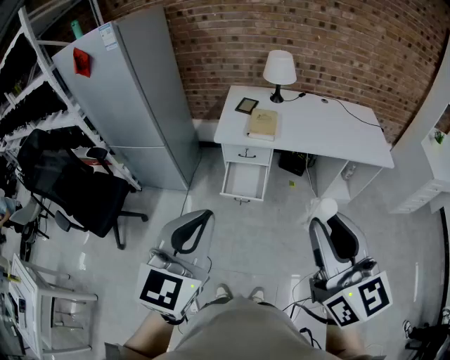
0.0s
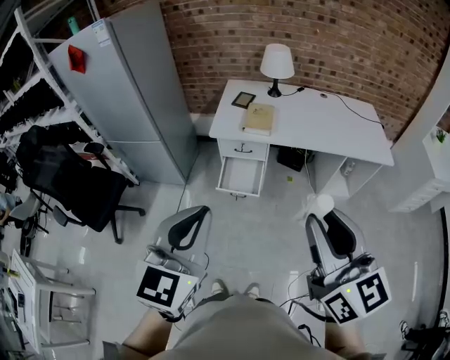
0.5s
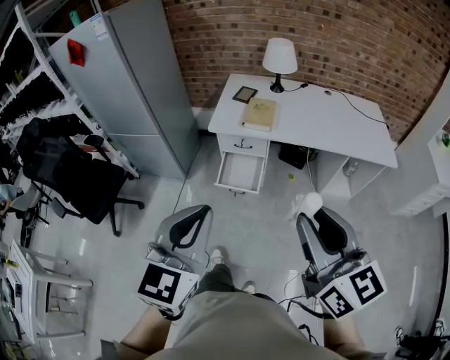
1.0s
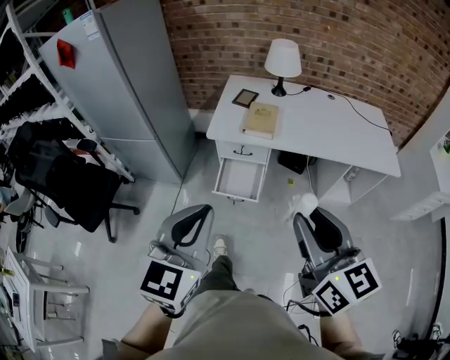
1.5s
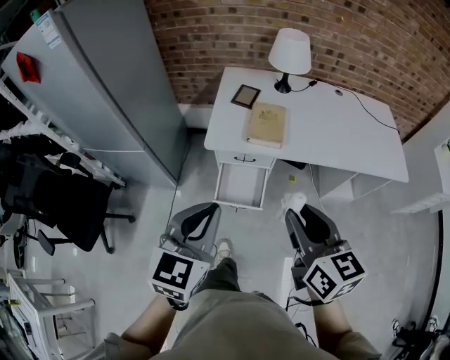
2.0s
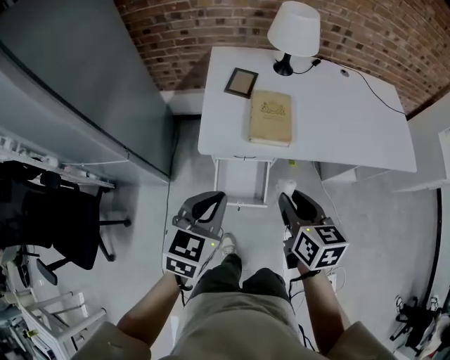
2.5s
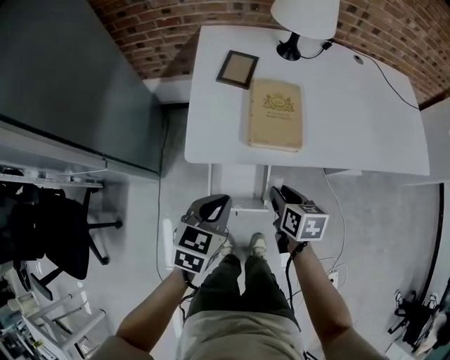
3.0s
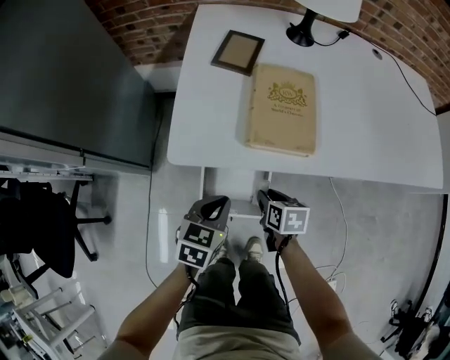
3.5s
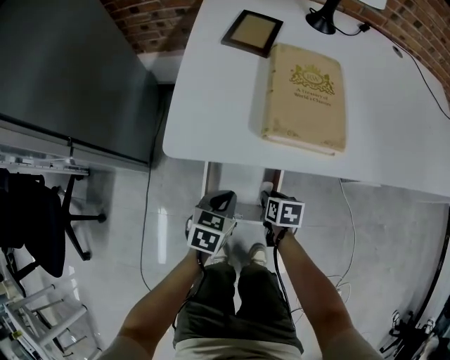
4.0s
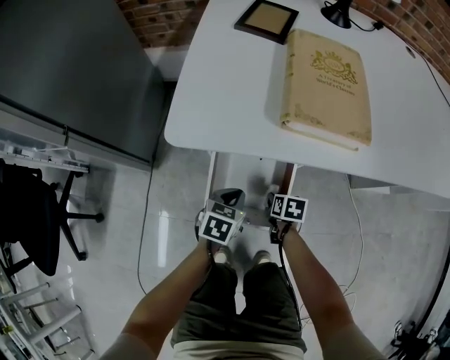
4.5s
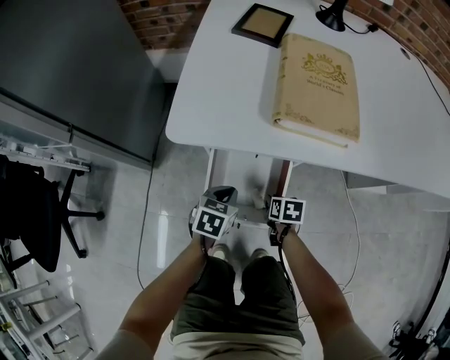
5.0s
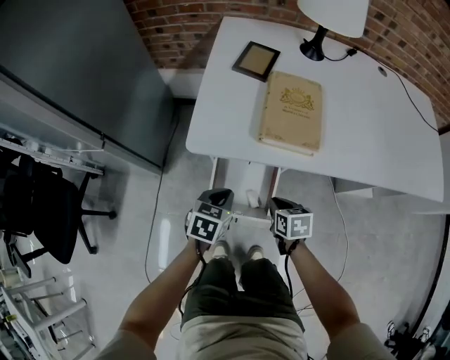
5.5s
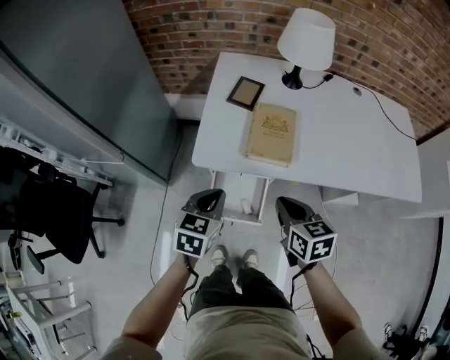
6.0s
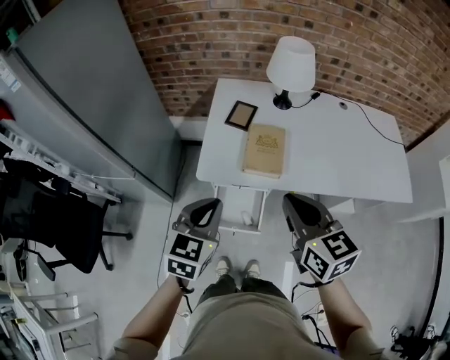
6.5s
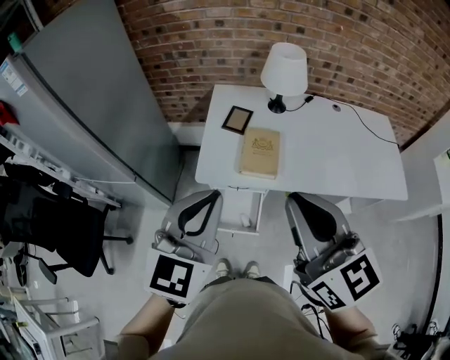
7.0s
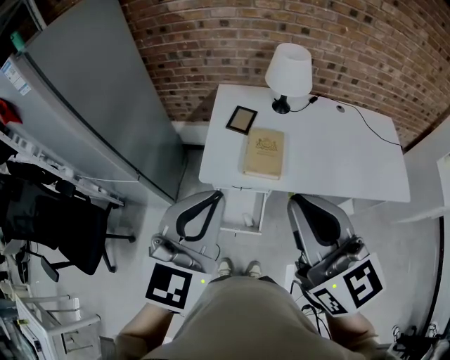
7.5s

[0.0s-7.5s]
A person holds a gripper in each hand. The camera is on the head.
0.0s to 2.0s: Both grippers travel together forward and downward, roughly 30 cm. The right gripper rotates some 20 degrees.
2.0s to 4.0s: The right gripper heads downward, covering some 70 cm, and angles its fingers downward, by approximately 40 degrees, while the left gripper heads downward and forward, covering roughly 60 cm, and swivels about 30 degrees.
4.0s to 5.5s: The right gripper moves upward, roughly 15 cm, and closes, while the left gripper shifts about 10 cm upward.
5.5s to 7.5s: The grippers both shift upward by some 60 cm. The left gripper tilts its fingers roughly 40 degrees upward. The right gripper tips its fingers upward by some 50 degrees.

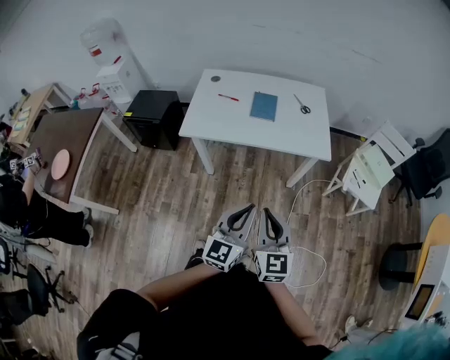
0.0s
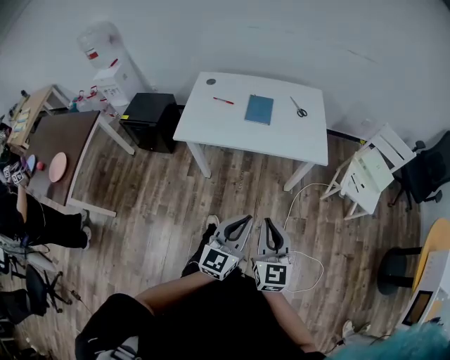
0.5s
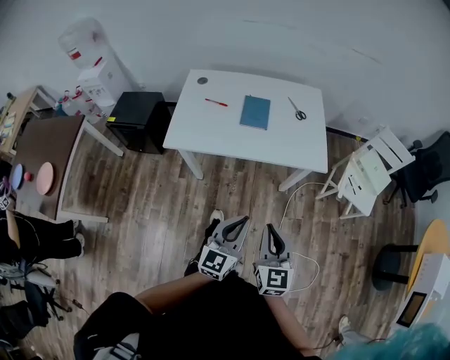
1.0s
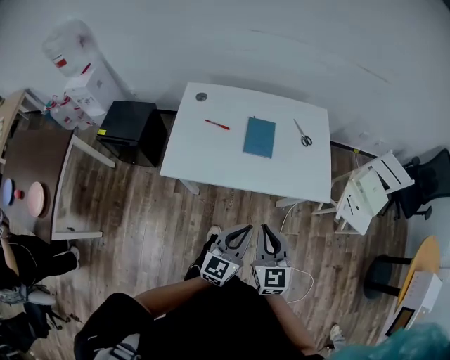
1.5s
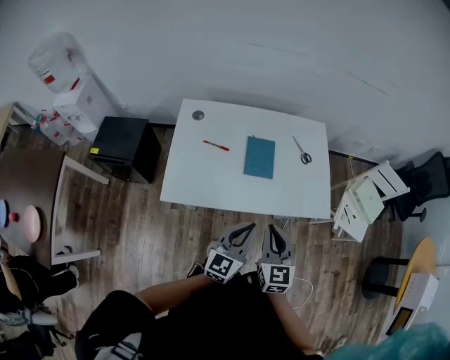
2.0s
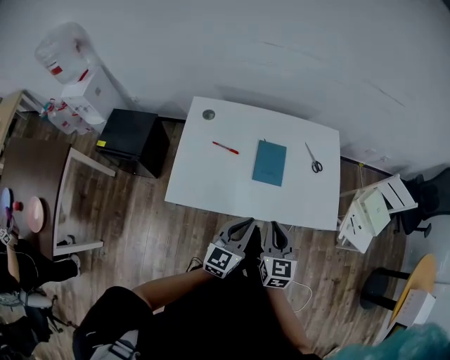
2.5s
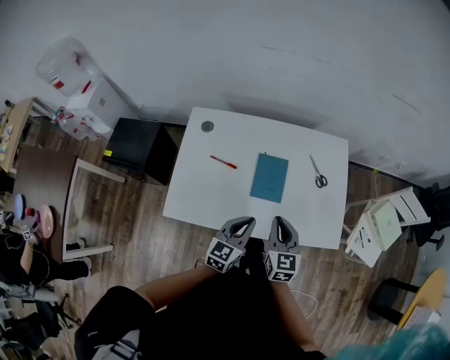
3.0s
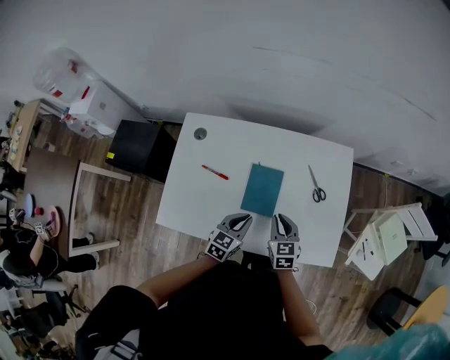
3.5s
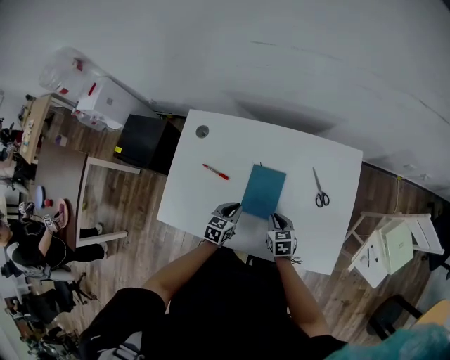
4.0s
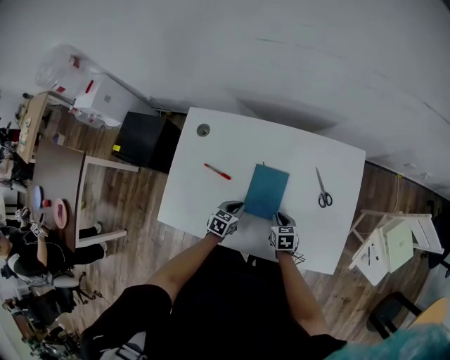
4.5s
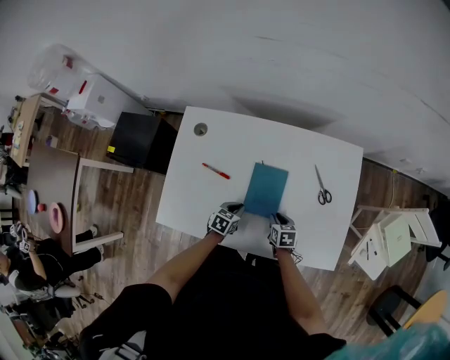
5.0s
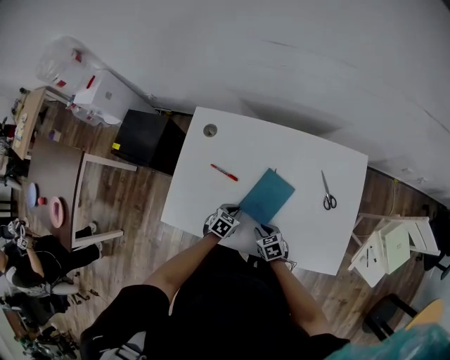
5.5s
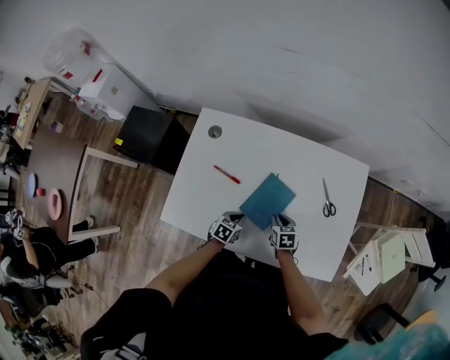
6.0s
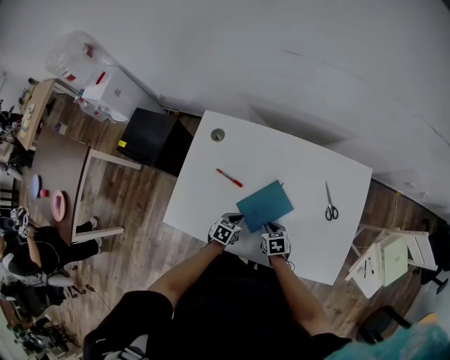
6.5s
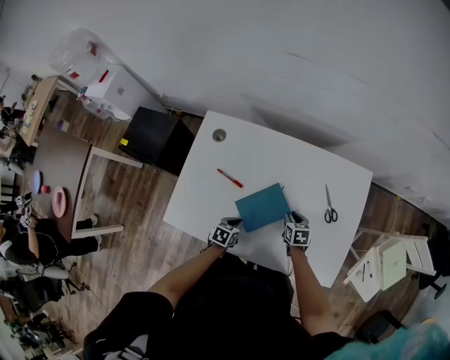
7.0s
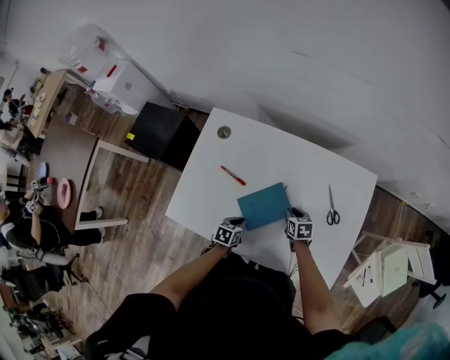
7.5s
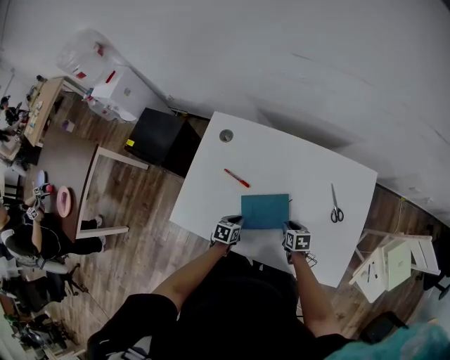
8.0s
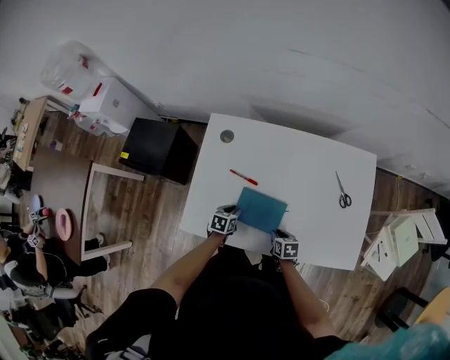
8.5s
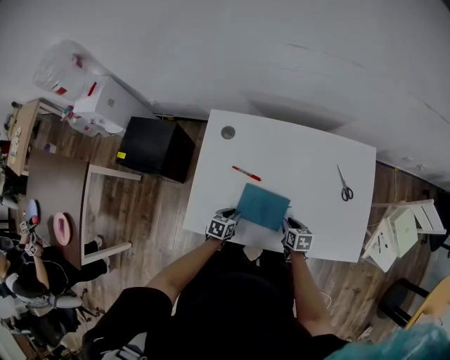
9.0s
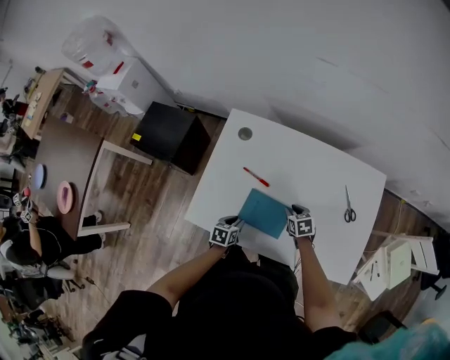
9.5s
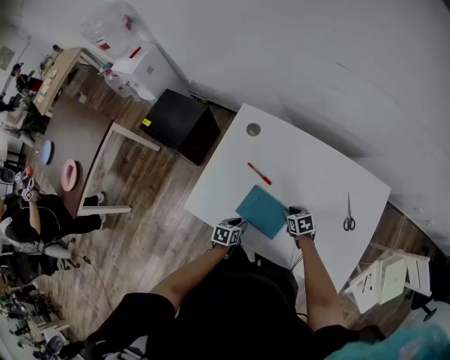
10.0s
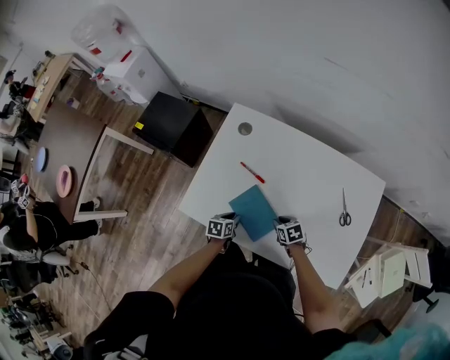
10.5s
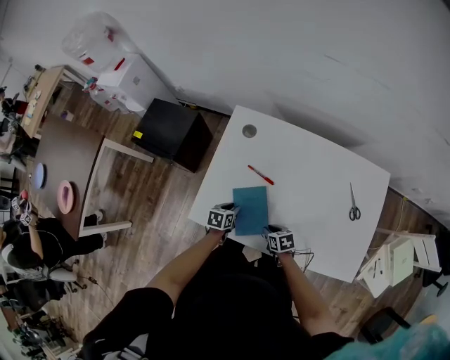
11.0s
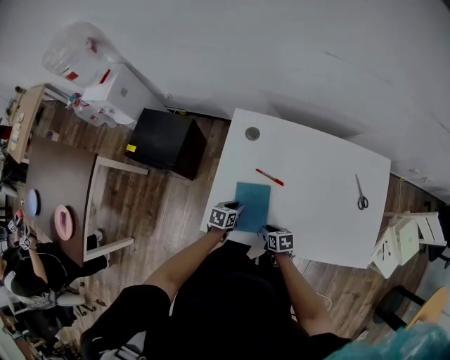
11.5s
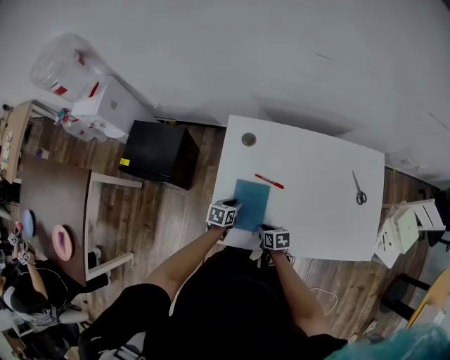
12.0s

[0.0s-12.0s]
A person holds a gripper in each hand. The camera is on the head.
0.0s to 2.0s: The grippers both shift forward by roughly 30 cm.
2.0s to 4.0s: Both grippers travel together forward and downward, about 40 cm. The left gripper tips its fingers downward by about 40 degrees. Meanwhile the right gripper changes its angle by roughly 40 degrees.
4.0s to 6.0s: The left gripper travels downward by some 10 cm; the right gripper reaches roughly 10 cm to the left, then returns.
6.0s to 8.0s: The right gripper goes forward and returns, about 5 cm each way.
8.0s to 10.0s: The right gripper goes some 10 cm to the left, travels backward and back again, roughly 5 cm each way, and swivels some 20 degrees. Meanwhile the left gripper moves to the left, roughly 5 cm.
10.0s to 12.0s: The right gripper shifts roughly 20 cm to the left, and swivels approximately 30 degrees; the left gripper moves forward and to the left, approximately 20 cm.

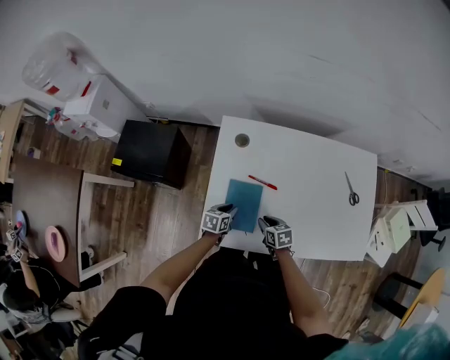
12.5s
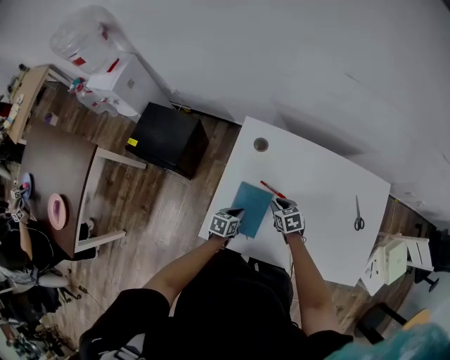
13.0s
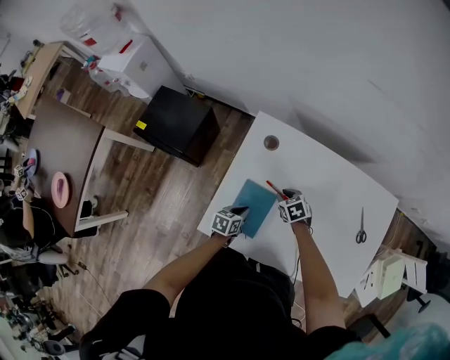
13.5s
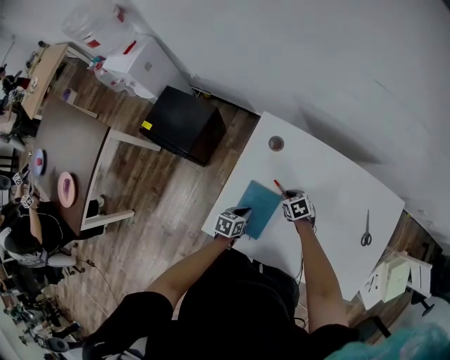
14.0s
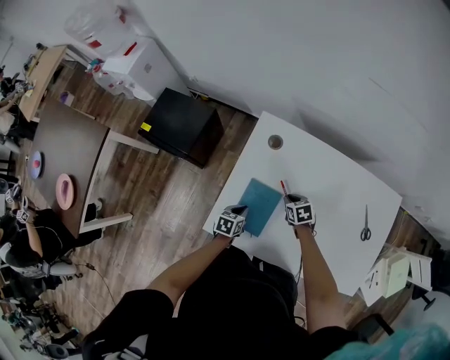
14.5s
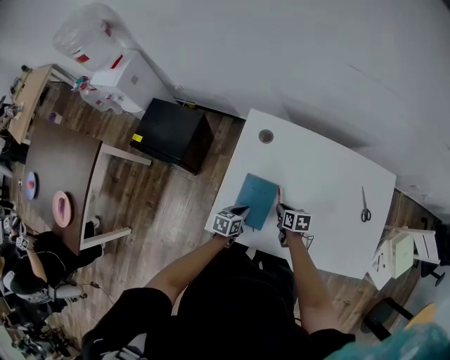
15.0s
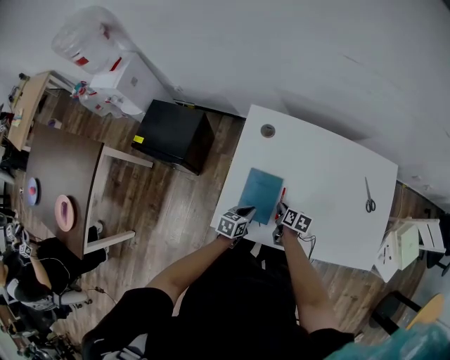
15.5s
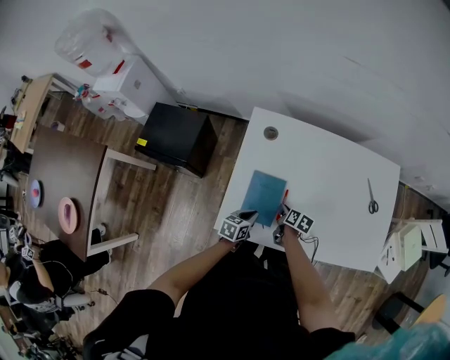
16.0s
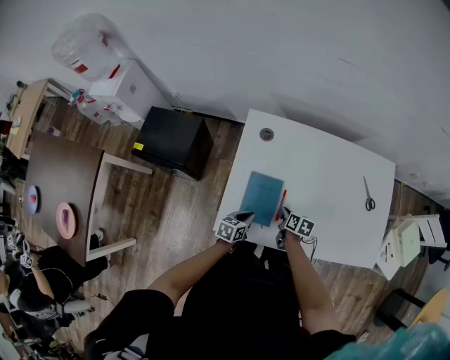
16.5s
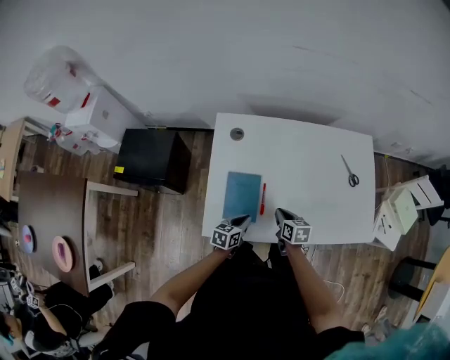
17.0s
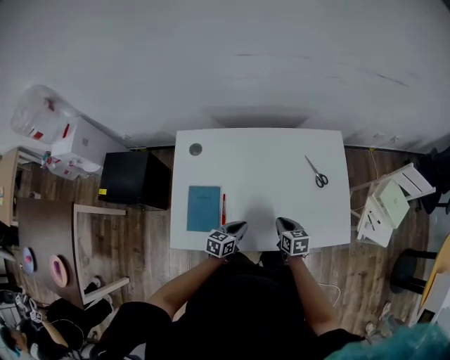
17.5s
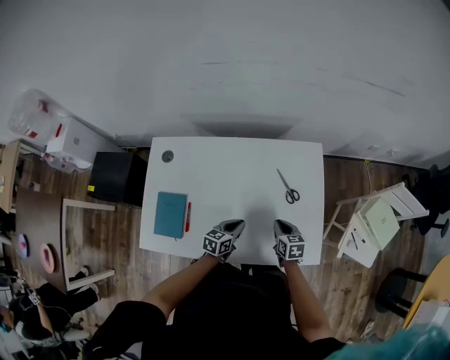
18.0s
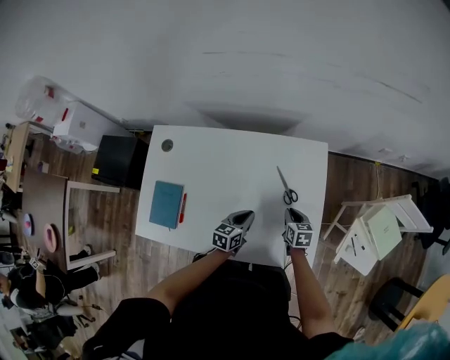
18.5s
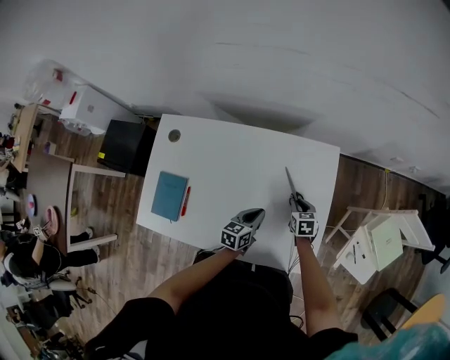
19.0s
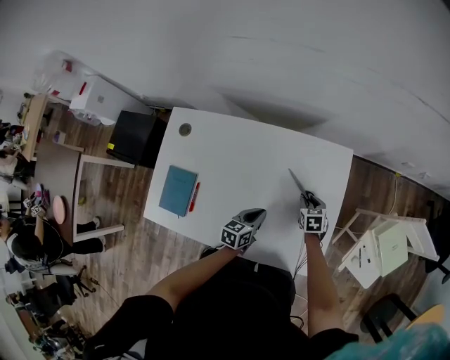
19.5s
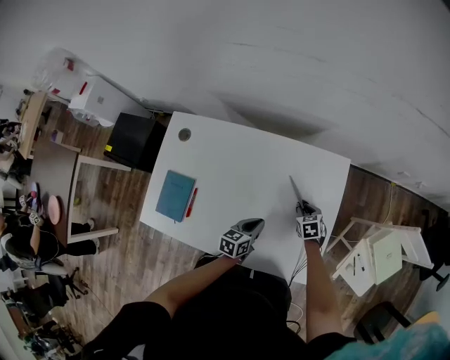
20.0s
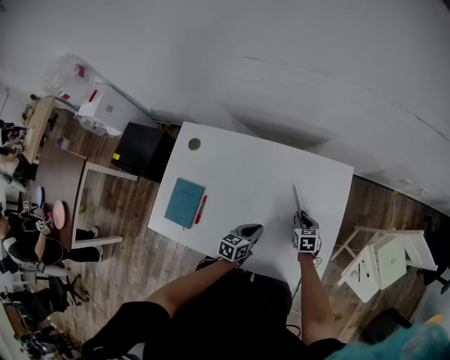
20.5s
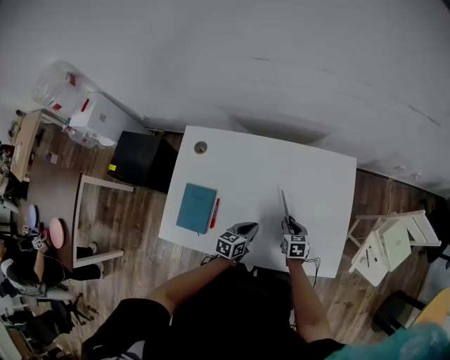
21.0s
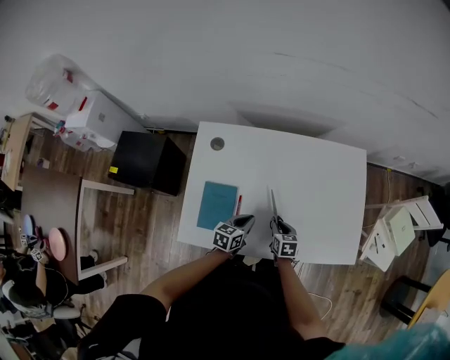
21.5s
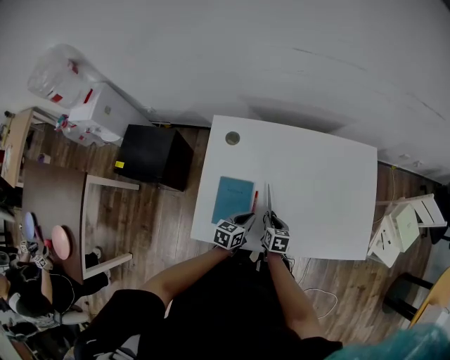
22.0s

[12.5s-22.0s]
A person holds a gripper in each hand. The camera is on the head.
12.5s to 14.5s: The right gripper moves forward, approximately 15 cm, and turns by approximately 20 degrees.
14.5s to 16.5s: The left gripper is displaced backward by some 5 cm, while the right gripper moves backward, about 10 cm, and twists approximately 50 degrees clockwise, seen from behind.
16.5s to 18.0s: The grippers both shift to the right by roughly 35 cm. The right gripper changes its angle by some 20 degrees.
18.0s to 20.0s: The left gripper travels to the right by some 5 cm, while the right gripper is displaced forward, downward and to the right by some 15 cm, and rotates approximately 30 degrees.
20.0s to 22.0s: The right gripper heads to the left and backward, covering approximately 40 cm, and swivels approximately 30 degrees, while the left gripper shifts approximately 30 cm to the left.
